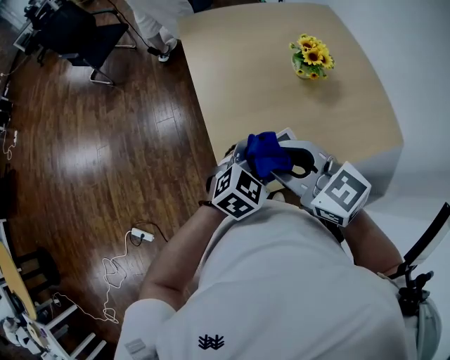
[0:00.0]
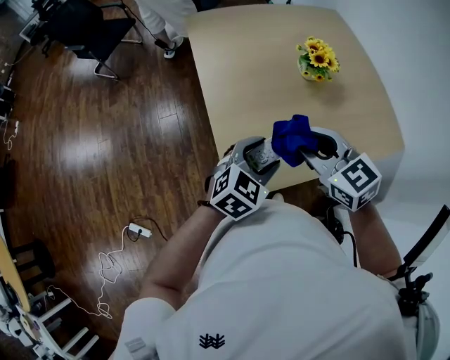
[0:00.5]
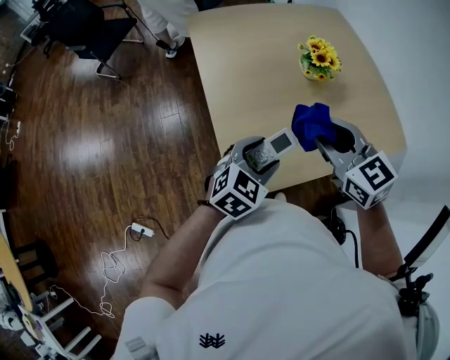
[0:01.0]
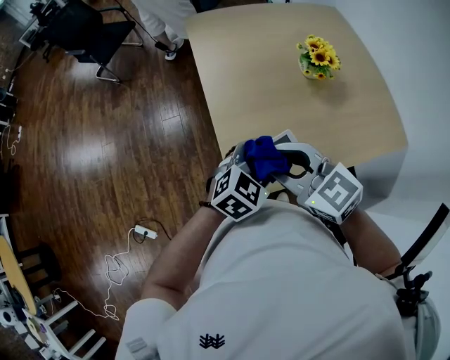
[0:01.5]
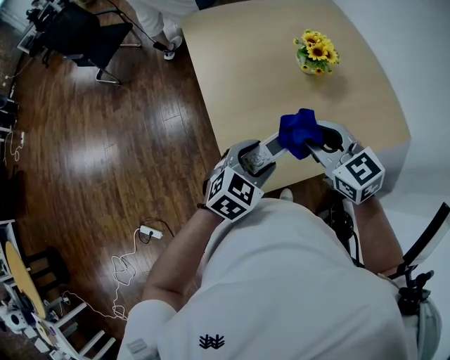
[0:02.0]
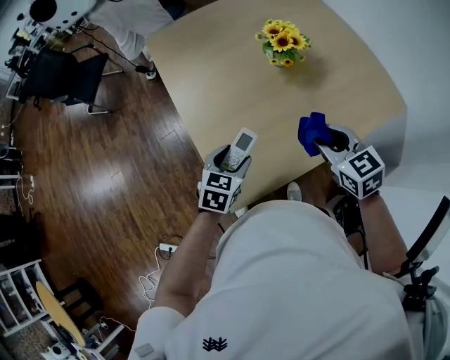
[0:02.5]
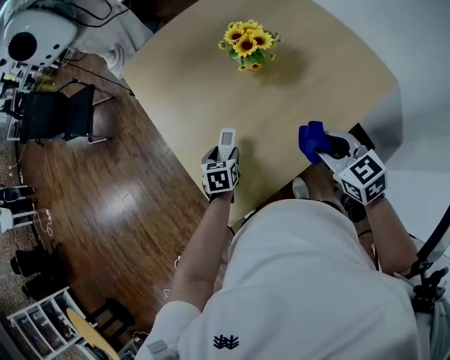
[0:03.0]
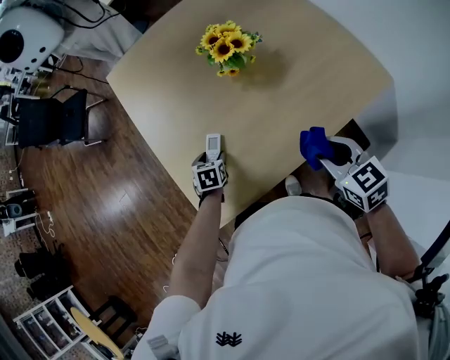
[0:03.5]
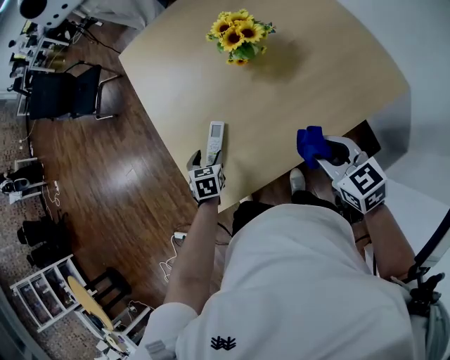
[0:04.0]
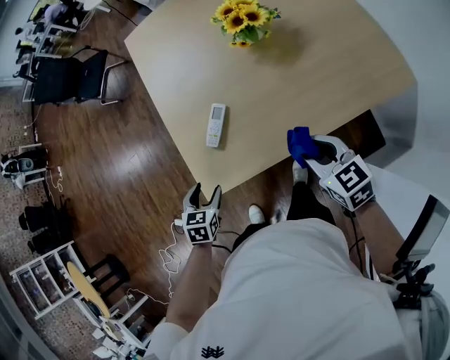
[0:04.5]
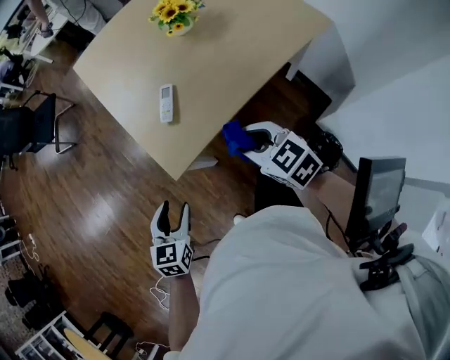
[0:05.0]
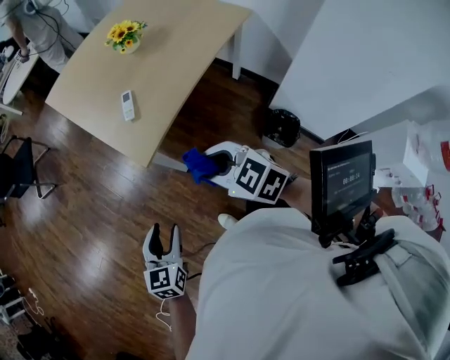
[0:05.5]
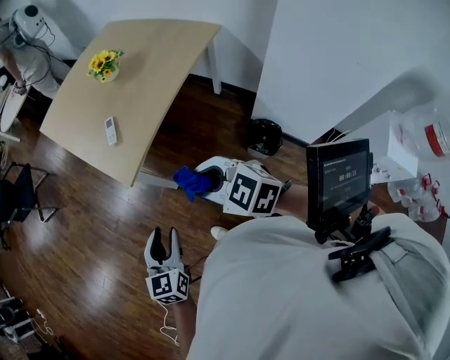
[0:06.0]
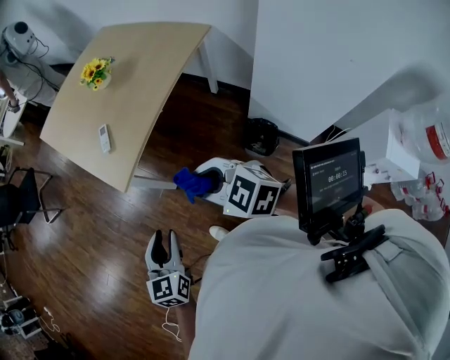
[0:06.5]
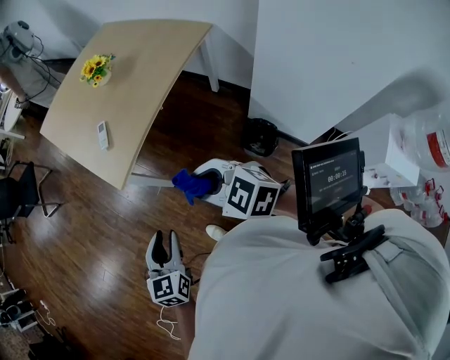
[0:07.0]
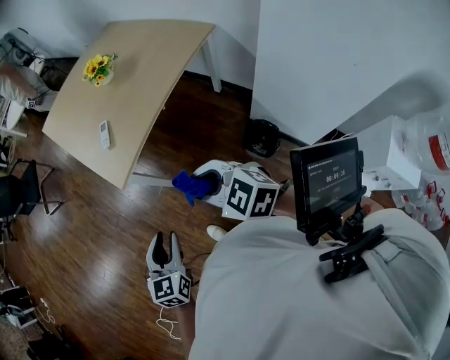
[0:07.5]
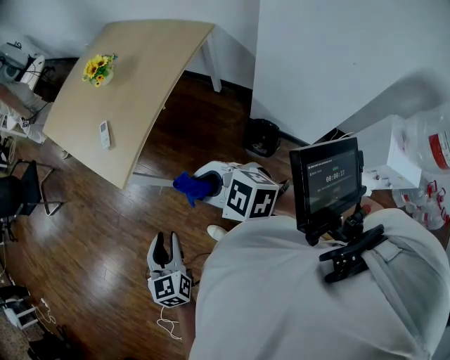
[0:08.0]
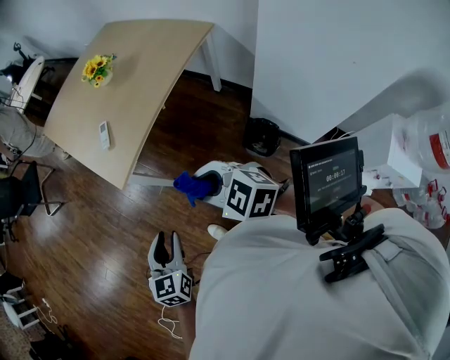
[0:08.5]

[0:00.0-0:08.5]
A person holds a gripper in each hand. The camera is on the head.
0:00.0 to 0:02.0: The right gripper moves left and right over about 10 cm, changing direction 2 times.
0:02.0 to 0:04.0: The right gripper shifts approximately 25 cm to the right and downward, and swivels roughly 20 degrees, while the left gripper heads downward and forward, covering approximately 20 cm, and rotates roughly 50 degrees.
0:04.0 to 0:06.5: The two grippers travel together, backward, some 50 cm. The left gripper goes some 20 cm upward, tips its fingers upward by approximately 30 degrees, and closes.
0:06.5 to 0:08.5: There are only small adjustments of the grippers.

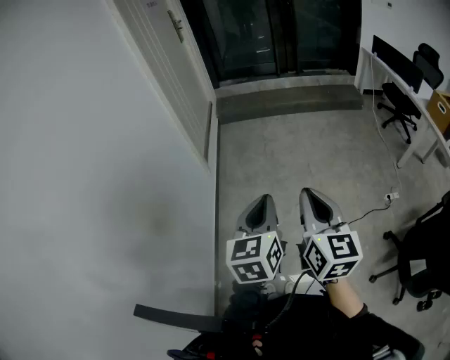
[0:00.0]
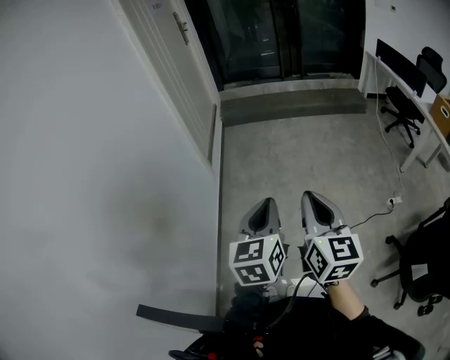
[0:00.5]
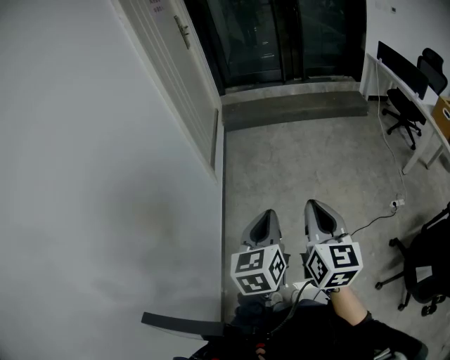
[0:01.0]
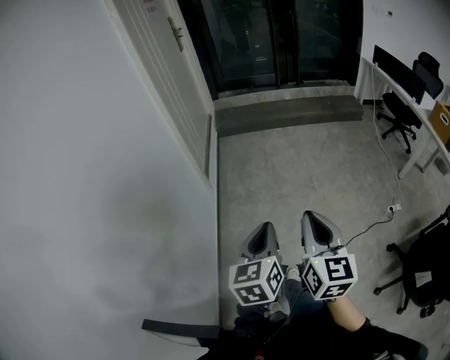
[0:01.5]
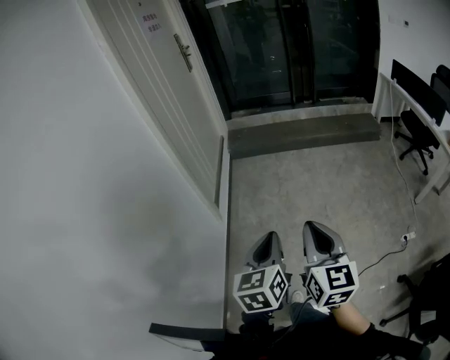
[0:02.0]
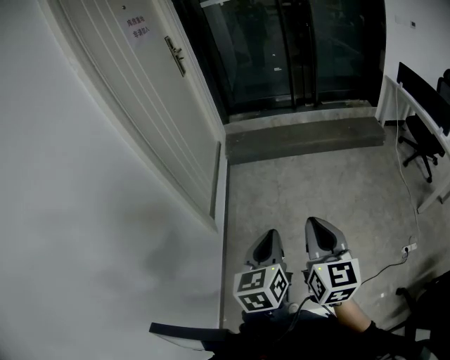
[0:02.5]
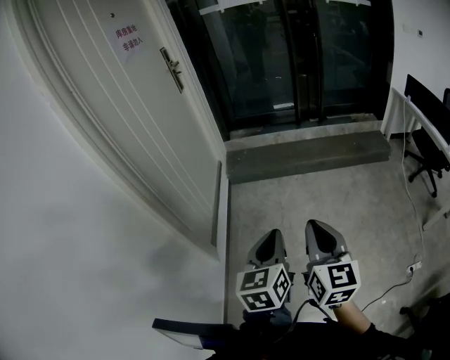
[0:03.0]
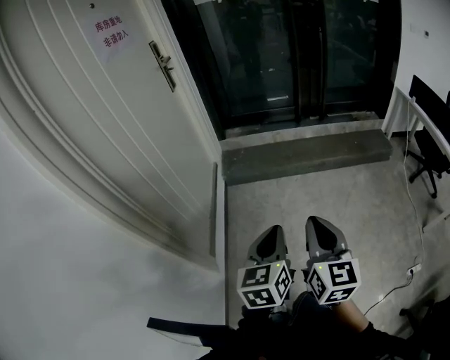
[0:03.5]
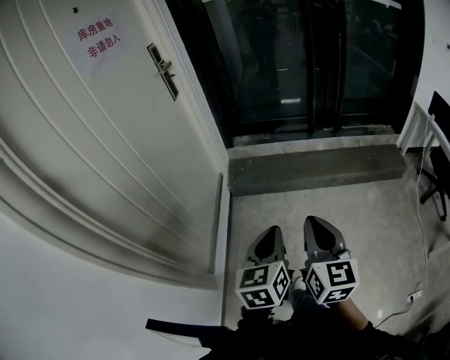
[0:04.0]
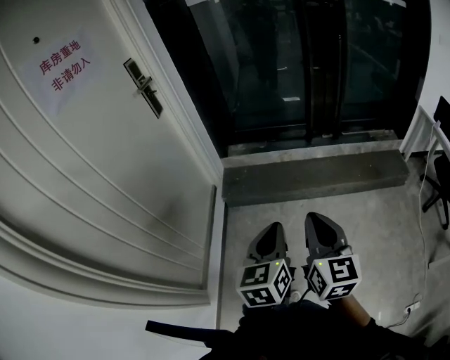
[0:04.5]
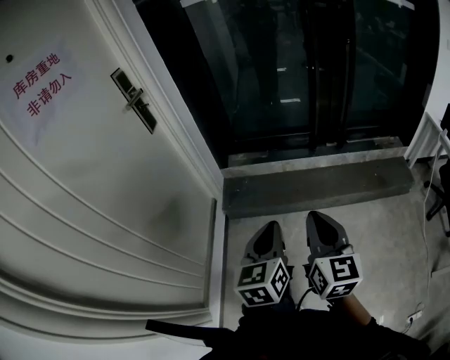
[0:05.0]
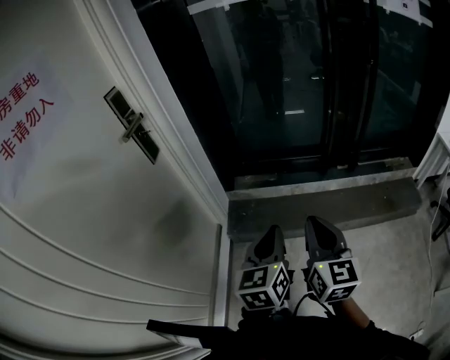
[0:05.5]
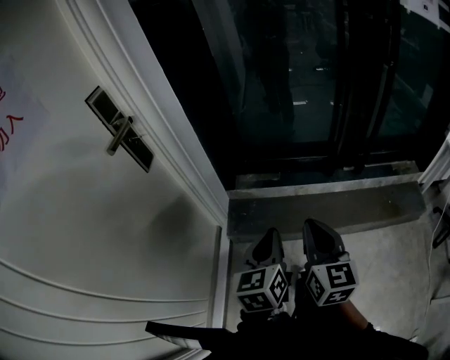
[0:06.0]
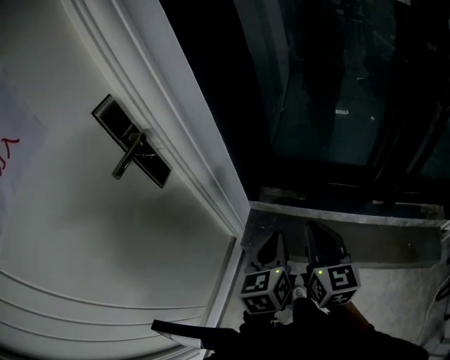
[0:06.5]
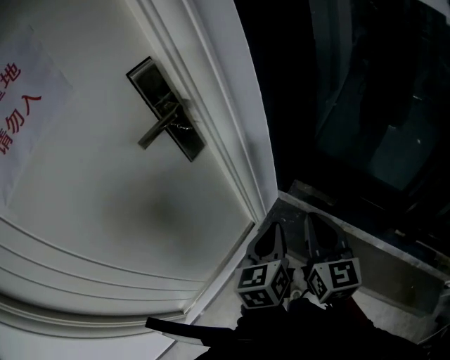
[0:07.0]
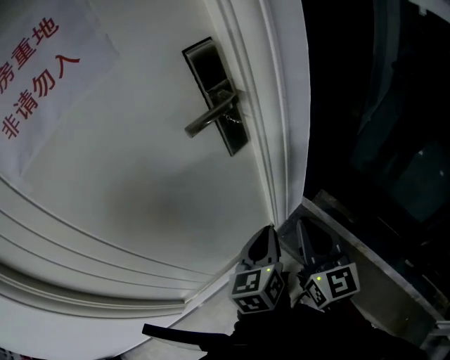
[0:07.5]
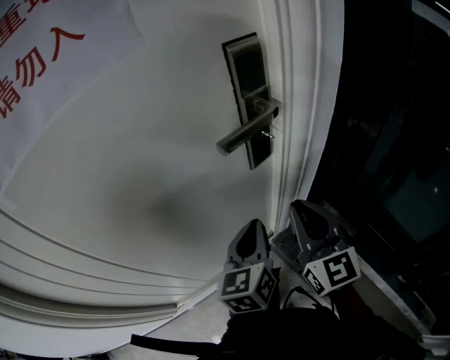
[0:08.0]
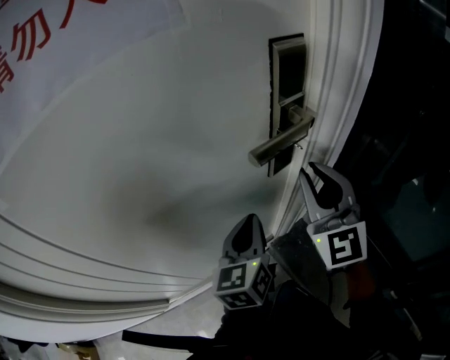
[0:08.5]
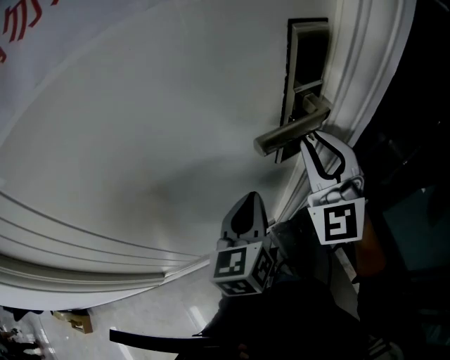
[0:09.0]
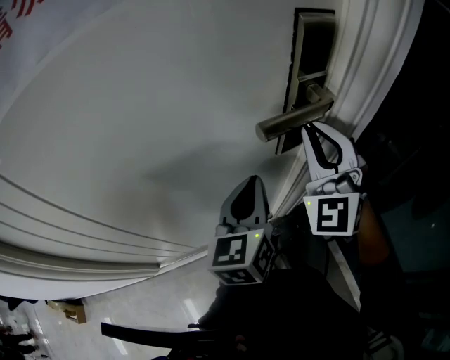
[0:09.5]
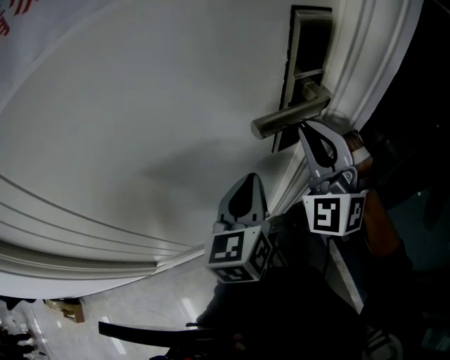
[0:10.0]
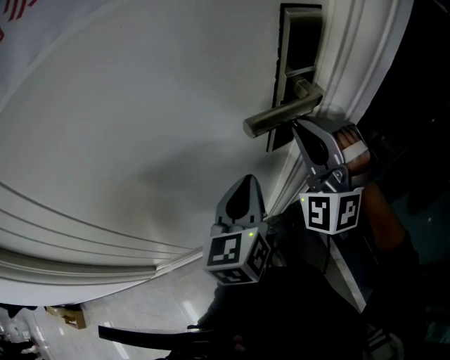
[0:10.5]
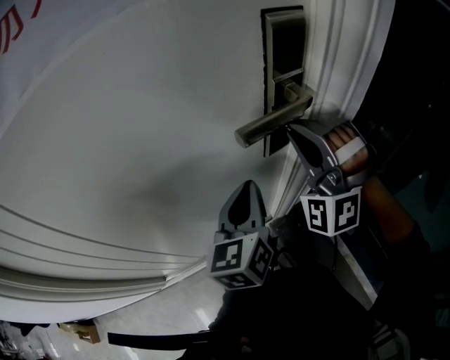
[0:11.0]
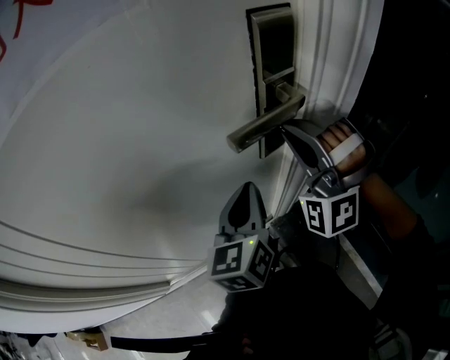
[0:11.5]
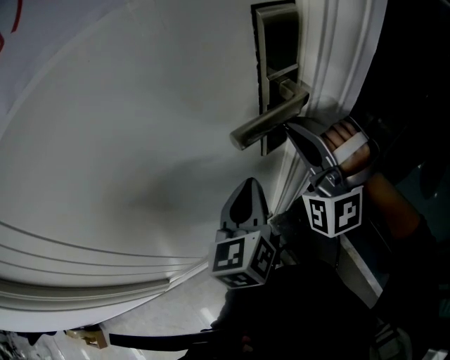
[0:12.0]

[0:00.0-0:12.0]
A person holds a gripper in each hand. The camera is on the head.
0:00.0 to 0:02.0: The grippers both shift forward by about 25 cm.
0:02.0 to 0:04.0: Both grippers are carried forward, approximately 60 cm.
0:04.0 to 0:06.0: Both grippers are carried forward, some 50 cm.
0:06.0 to 0:08.0: The left gripper shifts by some 30 cm, and changes its angle by approximately 50 degrees. The right gripper changes place by approximately 40 cm, and turns by some 60 degrees.
0:08.0 to 0:10.0: The left gripper moves forward, approximately 5 cm. Meanwhile the right gripper is displaced forward and upward by approximately 15 cm, and rotates around the line of its fingers by some 70 degrees, counterclockwise from behind.
0:10.0 to 0:12.0: The right gripper rotates about 20 degrees.

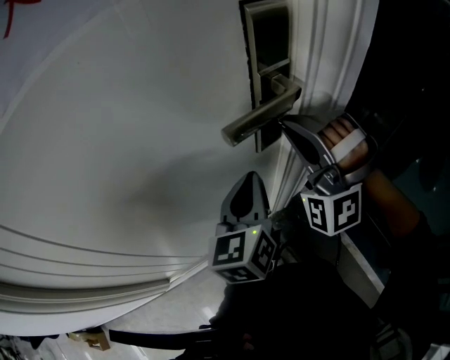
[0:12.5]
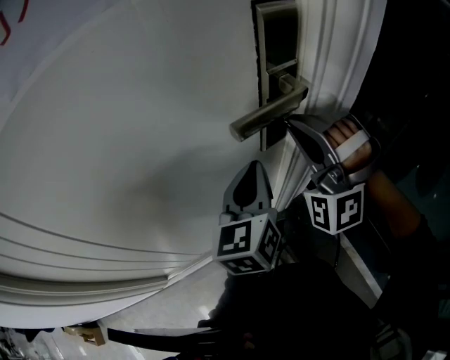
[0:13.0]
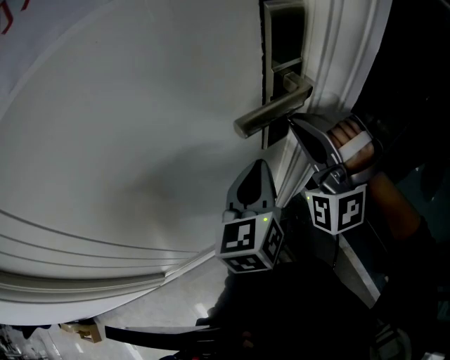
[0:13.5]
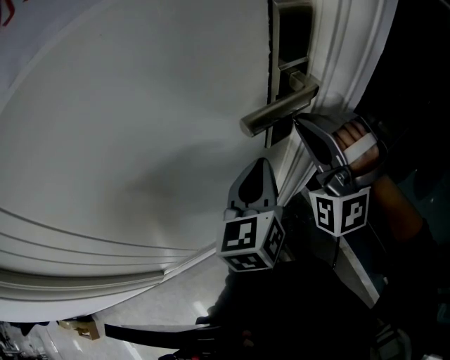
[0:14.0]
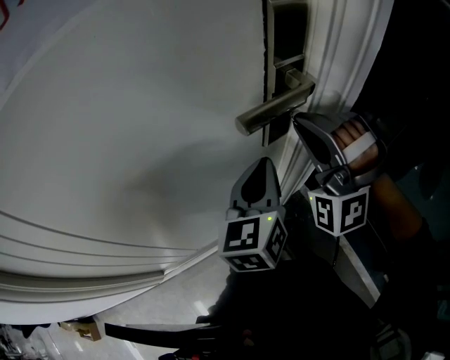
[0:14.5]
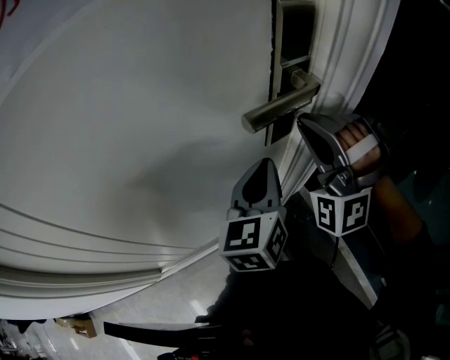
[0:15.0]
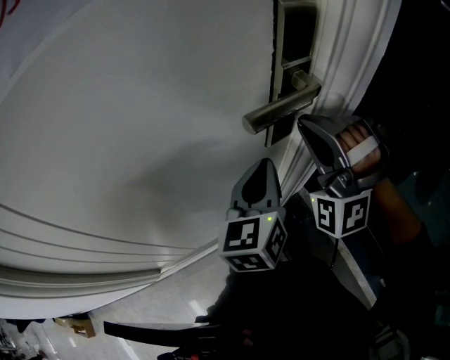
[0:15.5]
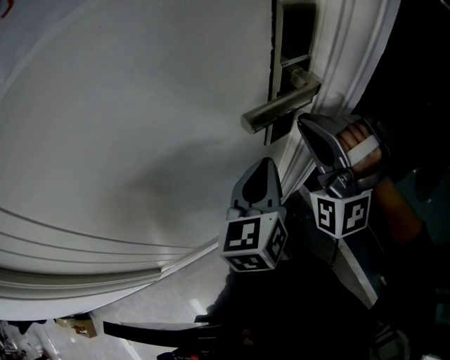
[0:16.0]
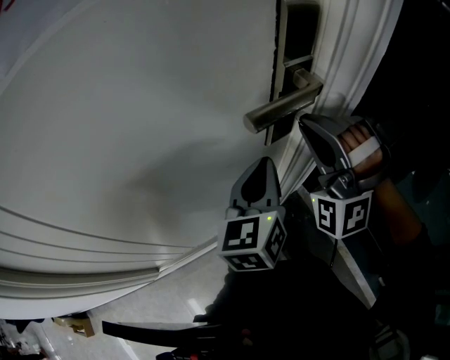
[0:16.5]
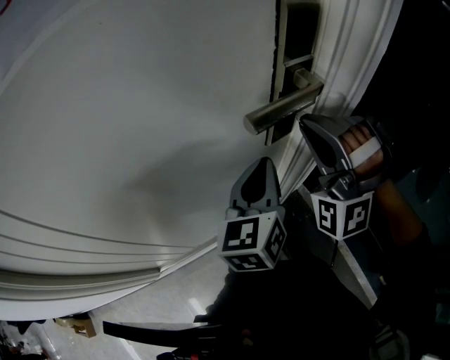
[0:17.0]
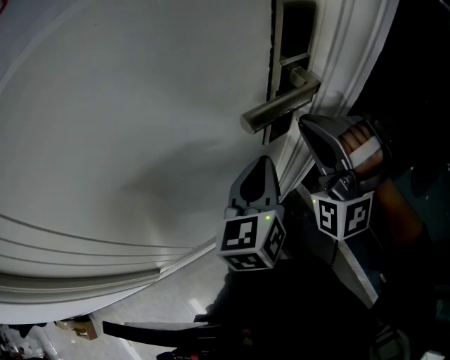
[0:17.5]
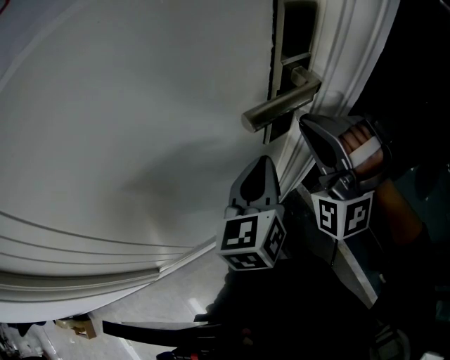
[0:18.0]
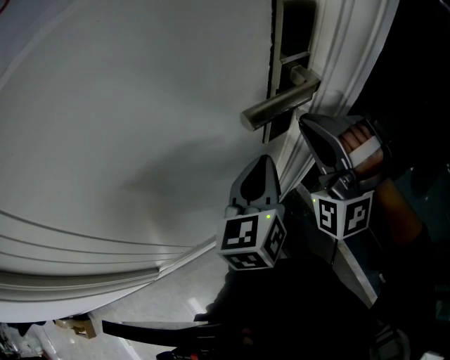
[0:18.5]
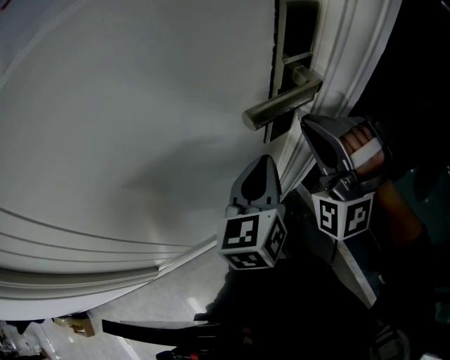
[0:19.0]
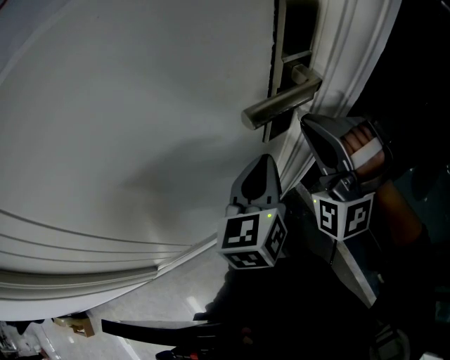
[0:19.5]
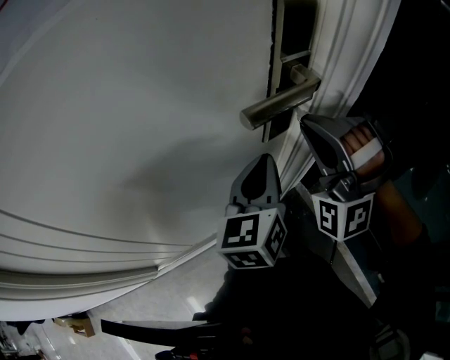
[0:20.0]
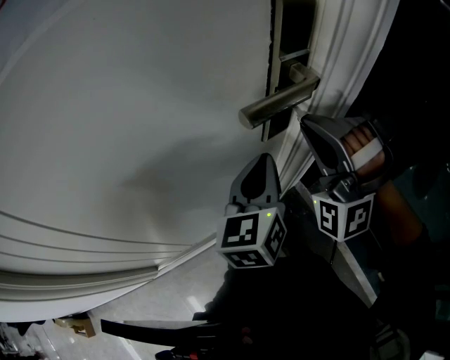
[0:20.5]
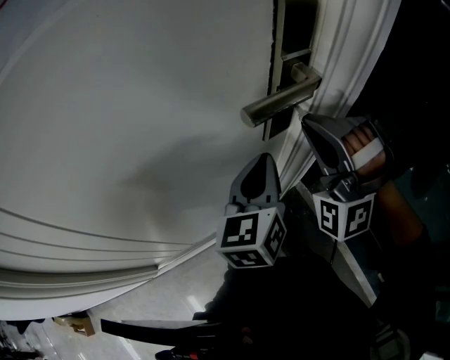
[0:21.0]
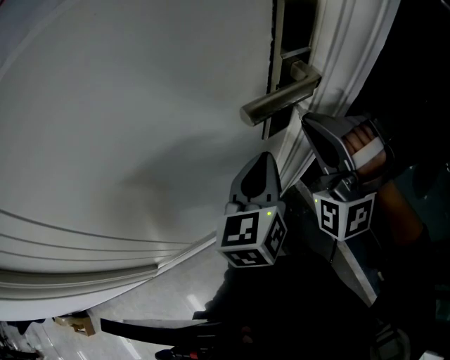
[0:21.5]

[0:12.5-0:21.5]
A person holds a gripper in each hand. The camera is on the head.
0:12.5 to 0:14.5: The grippers stay close to where they were, moving slightly.
0:14.5 to 0:21.5: The two grippers keep their place.
